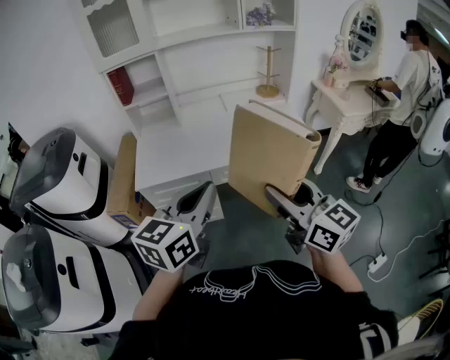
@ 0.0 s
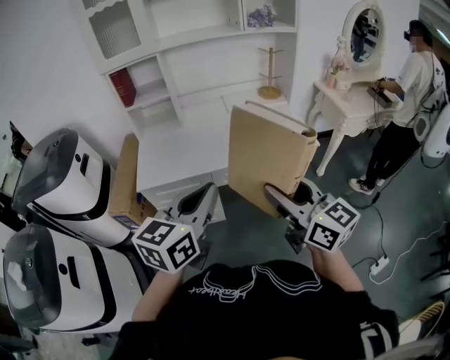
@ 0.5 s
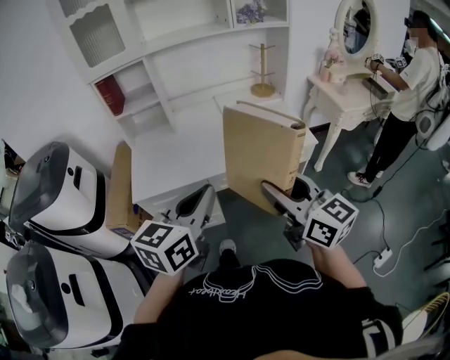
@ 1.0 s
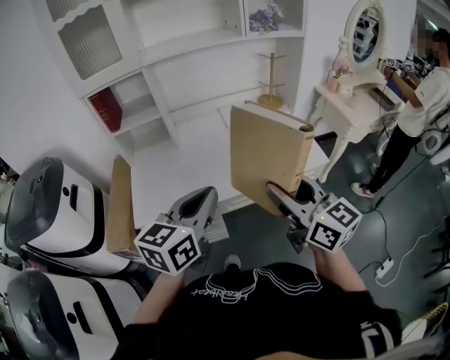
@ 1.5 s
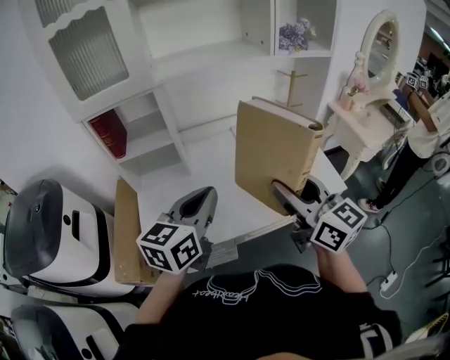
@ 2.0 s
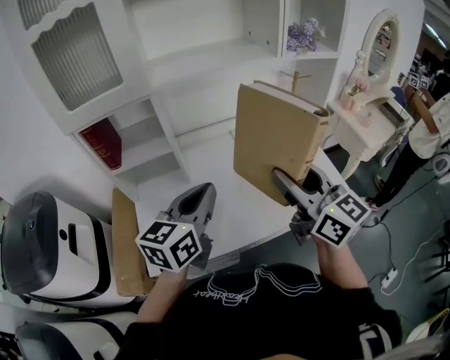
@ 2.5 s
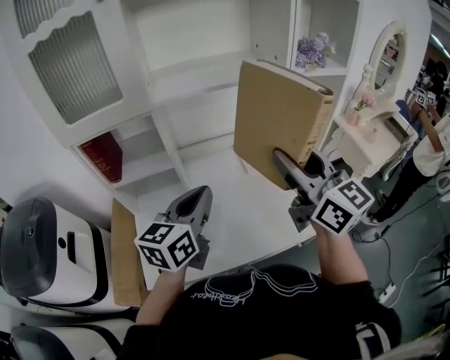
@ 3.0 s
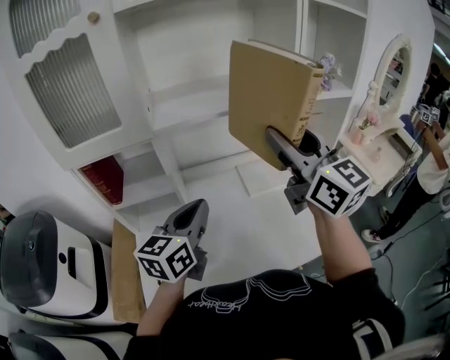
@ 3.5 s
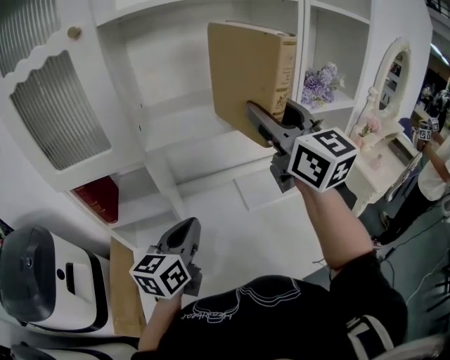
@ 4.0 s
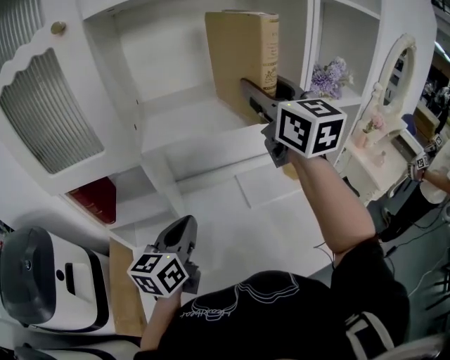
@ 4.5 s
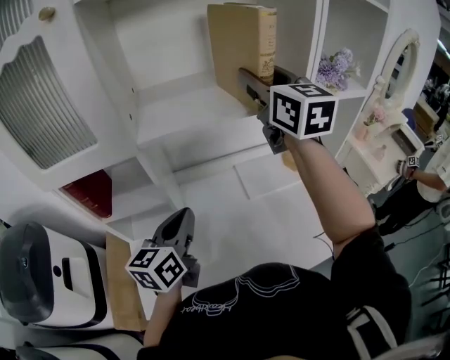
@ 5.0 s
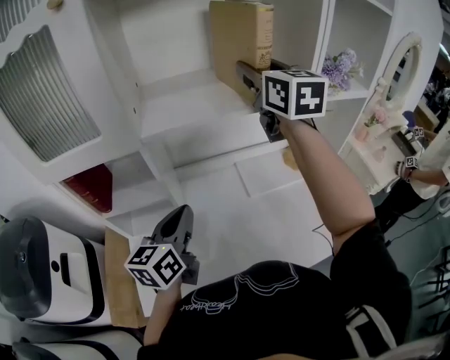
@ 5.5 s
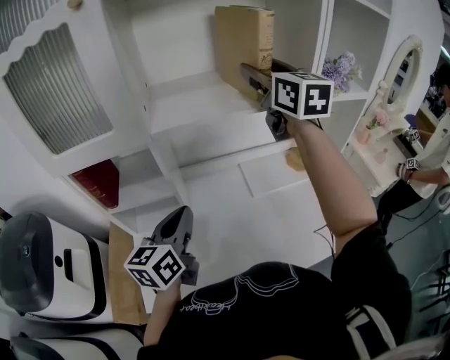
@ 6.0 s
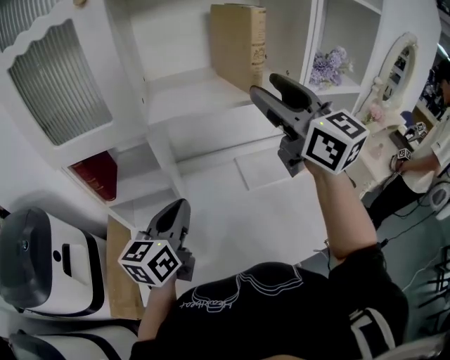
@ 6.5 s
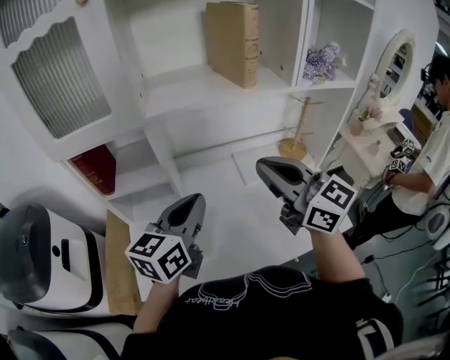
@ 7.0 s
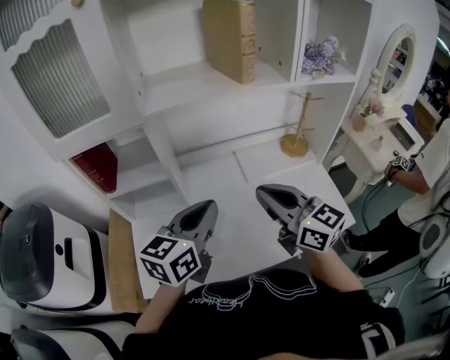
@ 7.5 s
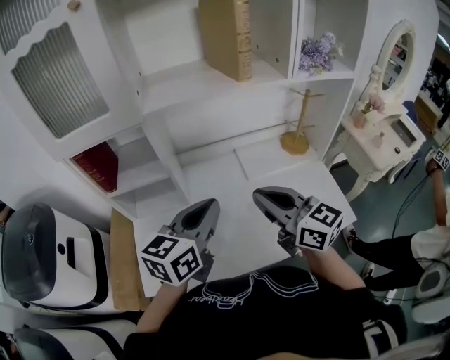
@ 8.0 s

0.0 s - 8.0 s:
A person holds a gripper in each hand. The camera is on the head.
0.0 s - 2.0 s: The grippers both shift forward by roughly 30 cm.
2.0 s - 4.0 s: The right gripper heads forward and upward, covering about 35 cm, while the left gripper shifts about 20 cm forward.
4.0 s - 6.0 s: The right gripper moves forward, roughly 15 cm.
6.0 s - 8.0 s: The right gripper is displaced backward and downward by some 35 cm, rotates some 30 degrees, and closes its fingers; the left gripper is displaced to the right and backward by approximately 10 cm.

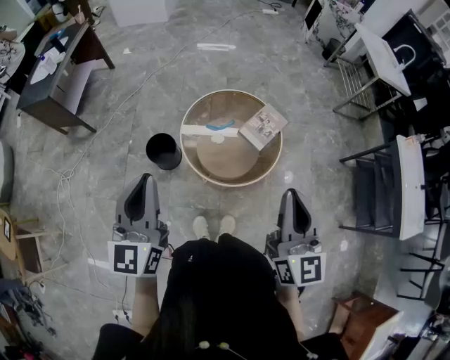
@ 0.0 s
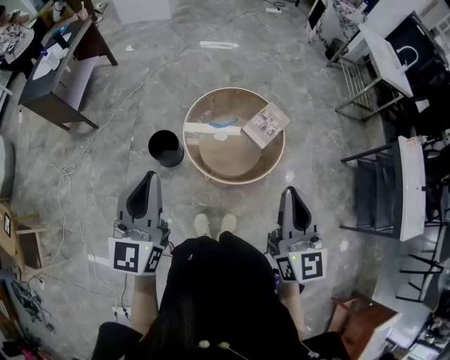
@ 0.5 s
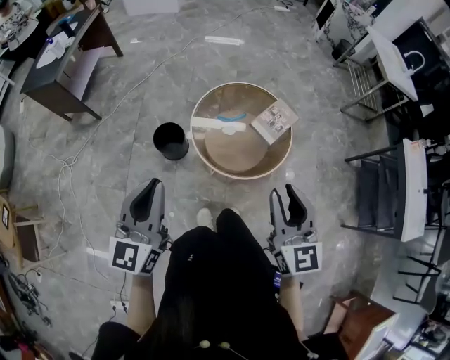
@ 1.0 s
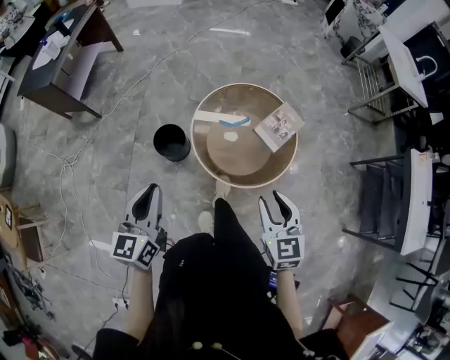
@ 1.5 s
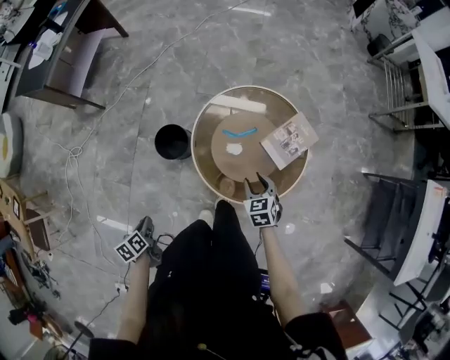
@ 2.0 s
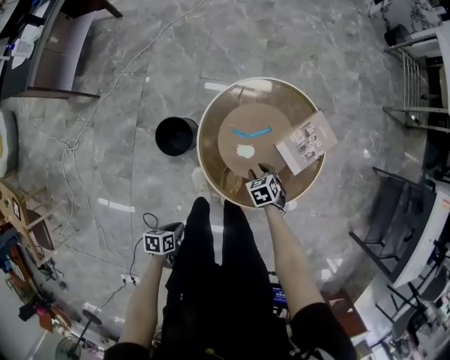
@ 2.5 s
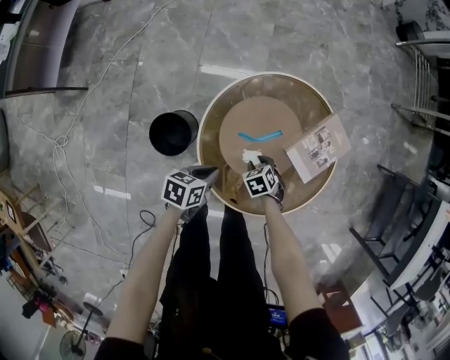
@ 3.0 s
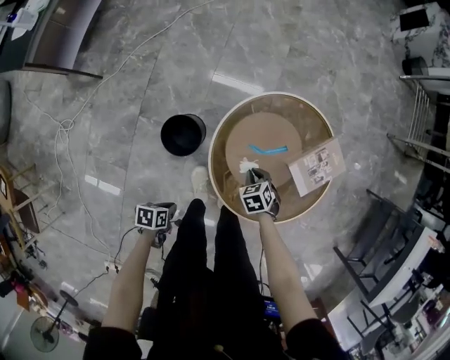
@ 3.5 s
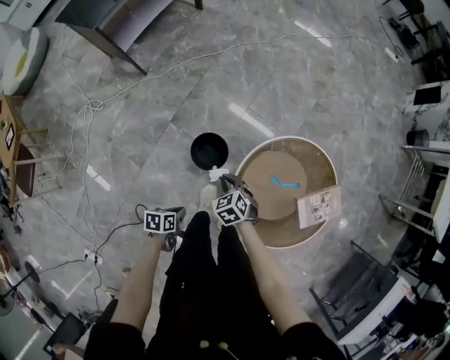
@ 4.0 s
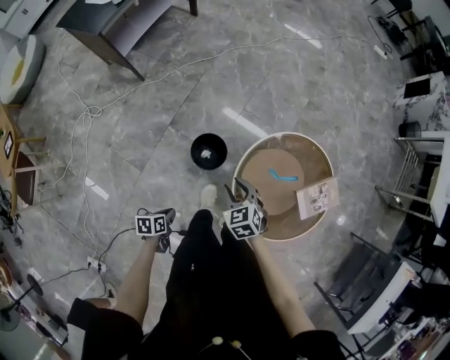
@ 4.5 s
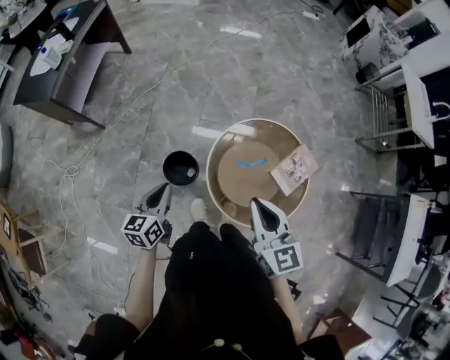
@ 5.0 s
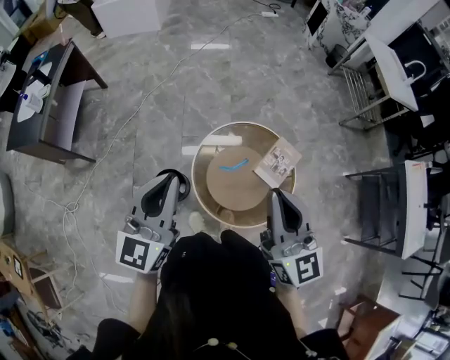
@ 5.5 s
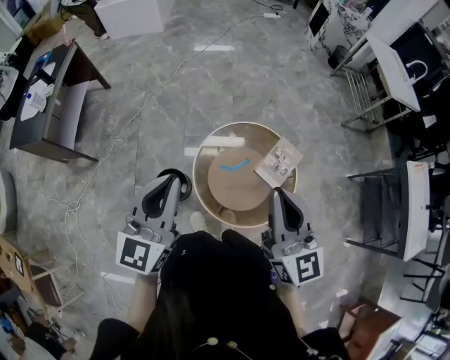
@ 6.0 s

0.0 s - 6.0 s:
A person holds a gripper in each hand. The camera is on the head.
0.0 s - 2.0 s: The left gripper moves downward, some 40 cm, and tips its fingers downward by roughly 60 degrees. The right gripper moves downward and forward, about 50 cm, tips its fingers downward by about 50 degrees, and opens.
2.0 s - 4.0 s: The right gripper goes downward and returns, some 20 cm each way, changes its angle by approximately 40 degrees, and closes up; the left gripper changes its angle by about 20 degrees.
4.0 s - 6.0 s: The left gripper is displaced upward by some 50 cm, and tilts its fingers approximately 60 degrees upward; the right gripper moves upward and to the right, approximately 60 cm, angles its fingers upward, by about 60 degrees, and opens and closes again.

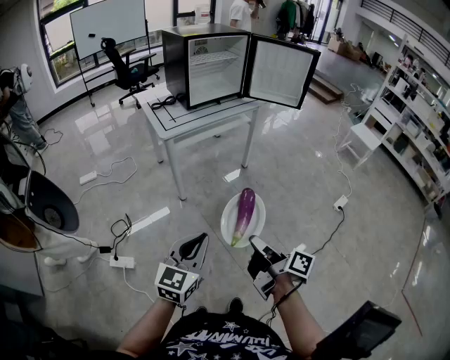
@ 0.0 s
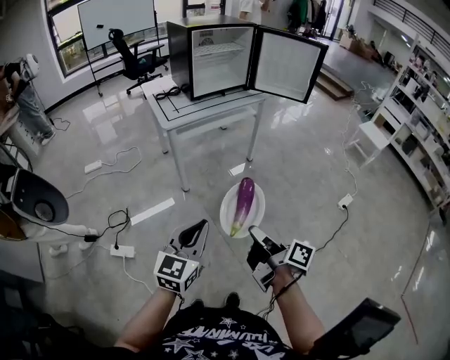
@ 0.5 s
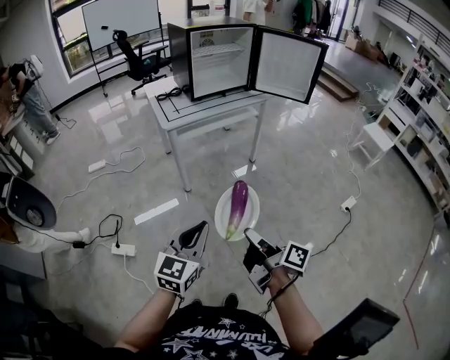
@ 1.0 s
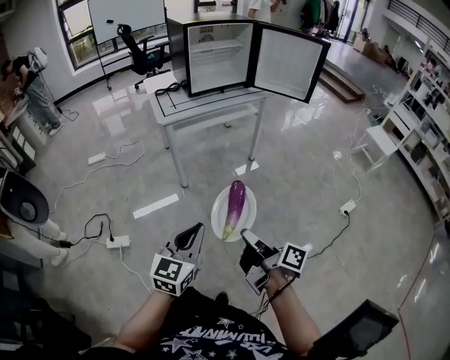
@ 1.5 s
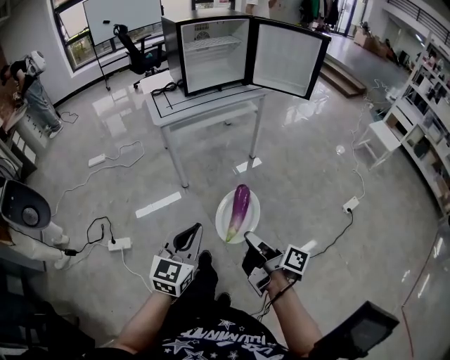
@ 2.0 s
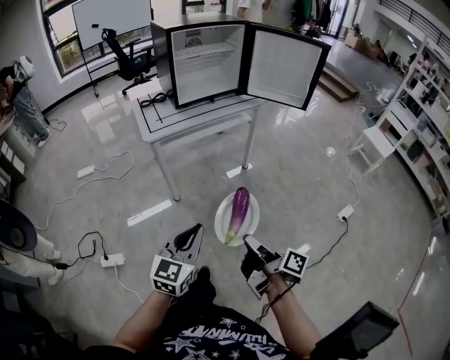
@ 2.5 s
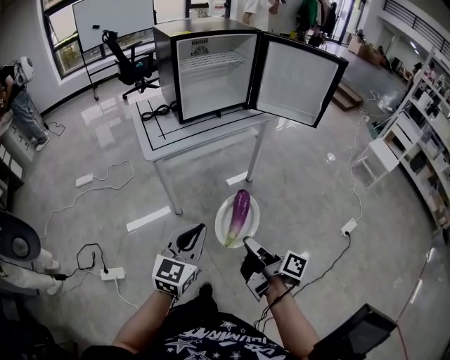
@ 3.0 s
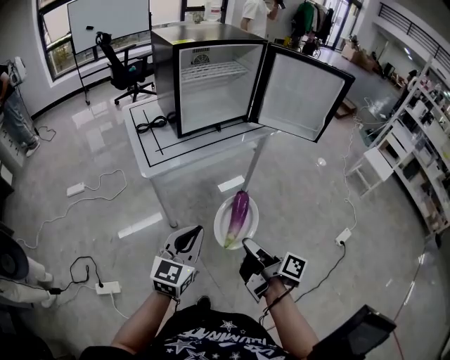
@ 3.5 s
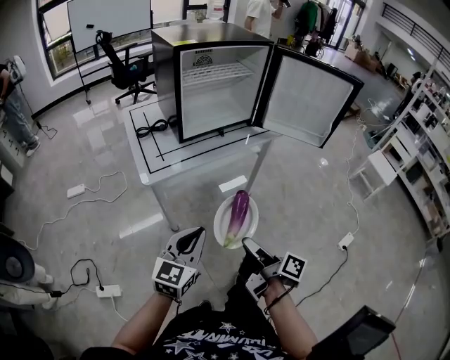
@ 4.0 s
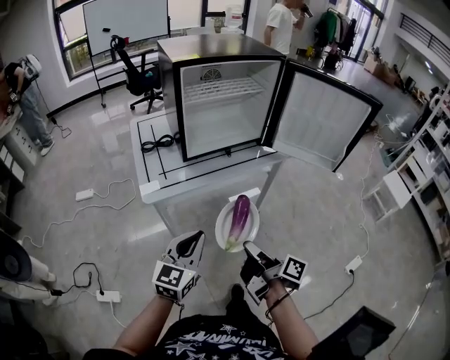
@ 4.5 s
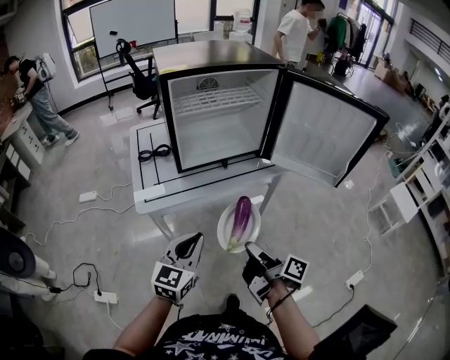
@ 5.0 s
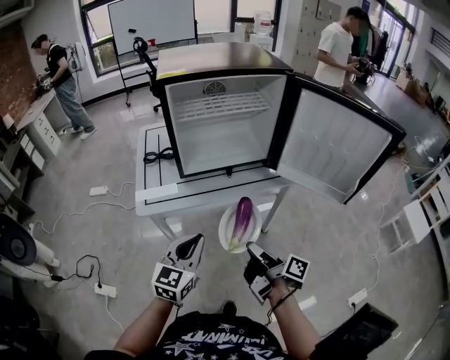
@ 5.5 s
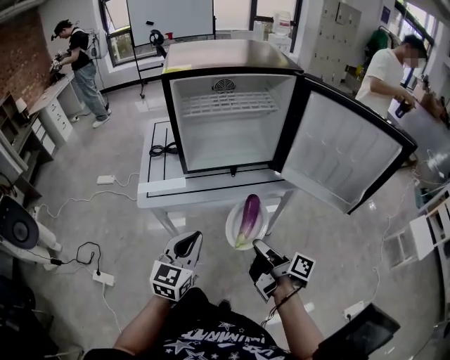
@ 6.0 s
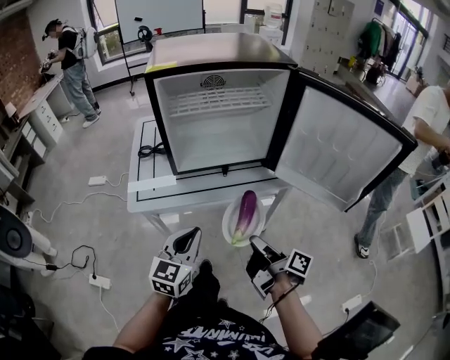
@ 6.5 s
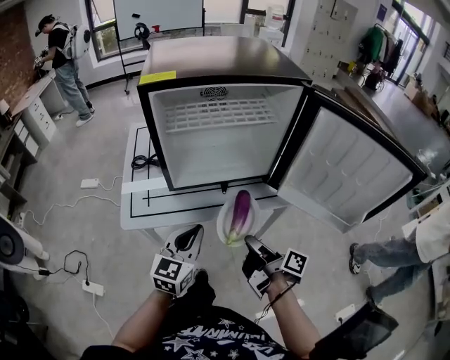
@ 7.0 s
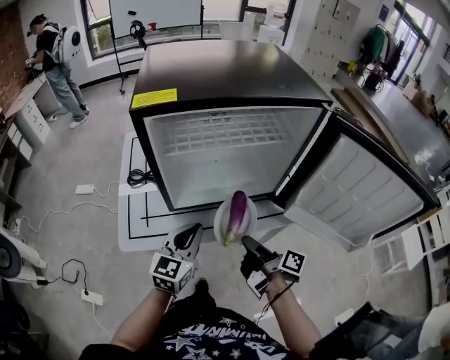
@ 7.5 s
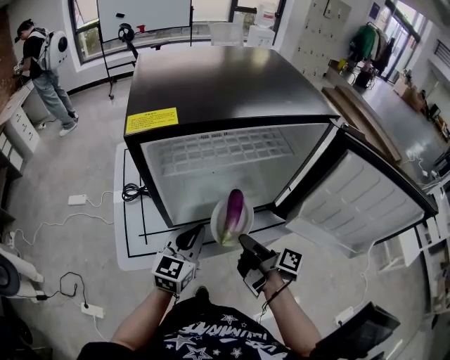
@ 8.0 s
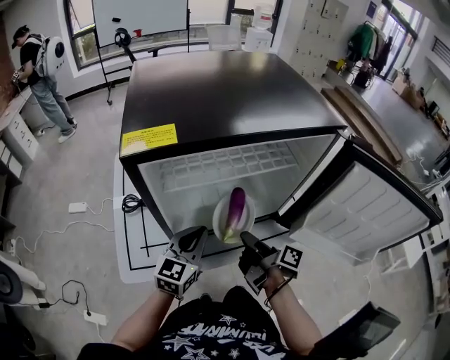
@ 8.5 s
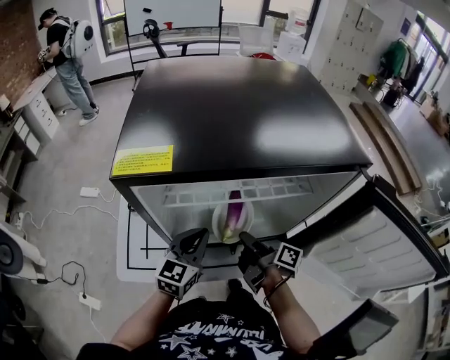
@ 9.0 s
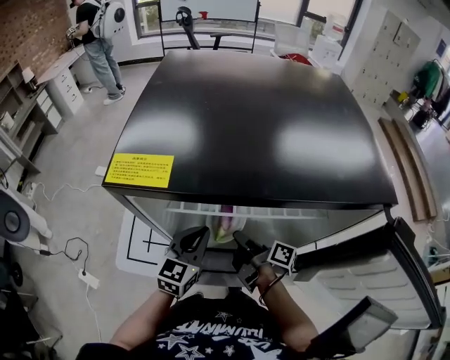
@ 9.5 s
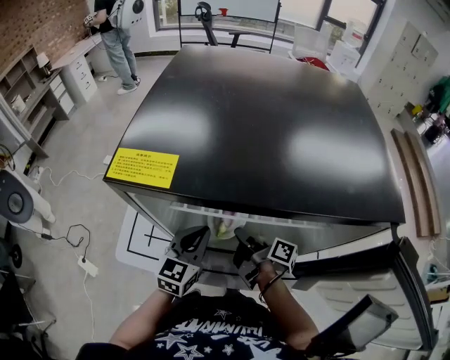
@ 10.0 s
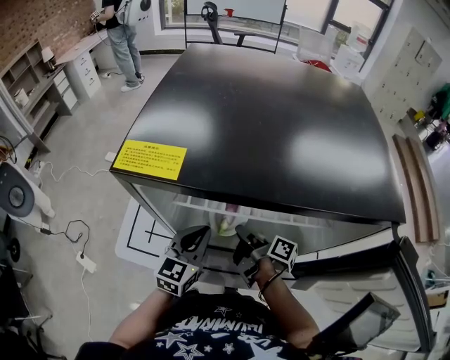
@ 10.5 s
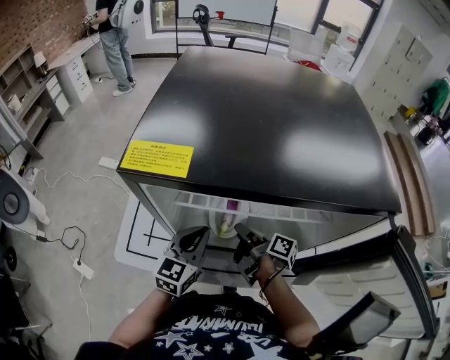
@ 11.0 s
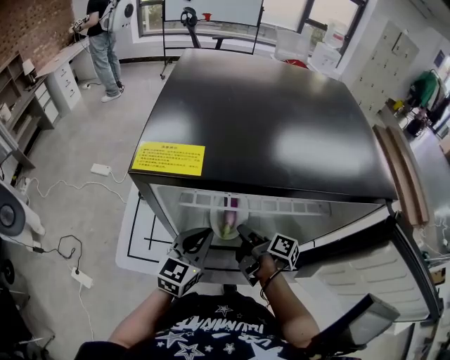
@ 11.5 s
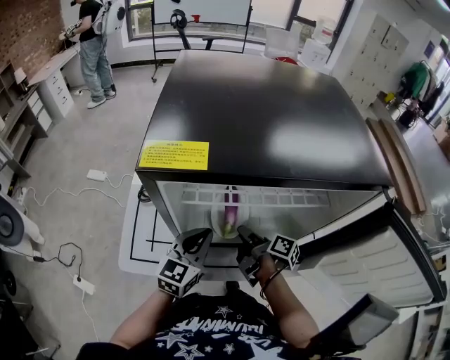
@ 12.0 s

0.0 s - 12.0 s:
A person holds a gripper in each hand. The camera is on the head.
0.0 s - 2.0 s: The left gripper ends up roughly 10 cm from where it was.
2.0 s - 4.0 s: The left gripper changes place by some 35 cm.
4.0 s - 6.0 s: The left gripper changes place by approximately 20 cm, and changes its angle by approximately 20 degrees.
6.0 s - 8.0 s: The left gripper moves some 30 cm.
8.0 s - 10.0 s: The left gripper shifts by some 10 cm, and changes its angle by about 20 degrees.

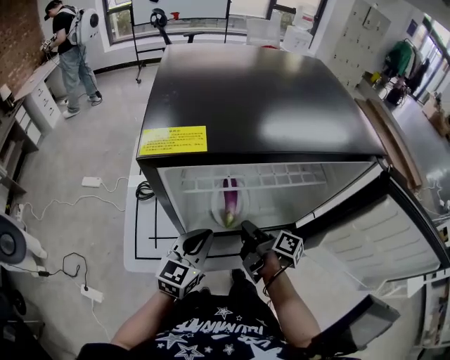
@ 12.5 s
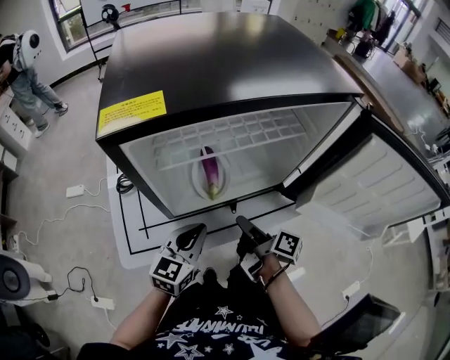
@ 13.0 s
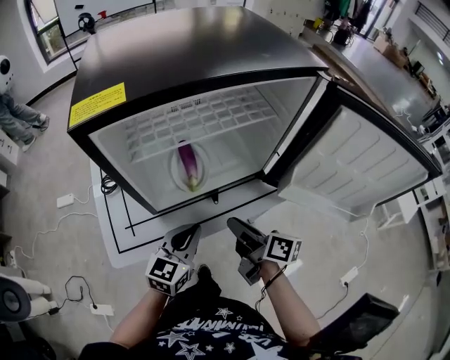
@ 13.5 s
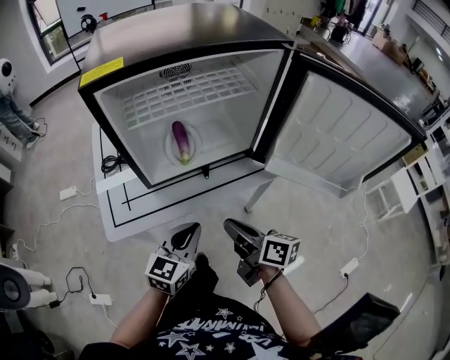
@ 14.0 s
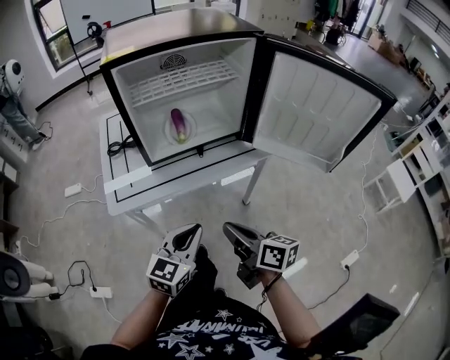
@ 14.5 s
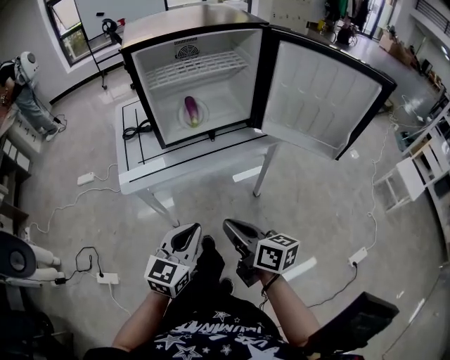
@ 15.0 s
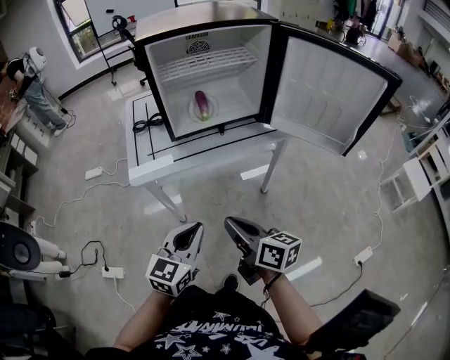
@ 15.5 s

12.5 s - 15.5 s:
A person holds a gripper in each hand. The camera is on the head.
12.5 s - 14.0 s: The left gripper moves roughly 20 cm.
14.0 s - 15.5 s: The left gripper ends up roughly 25 cm from where it was.
